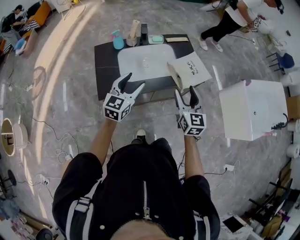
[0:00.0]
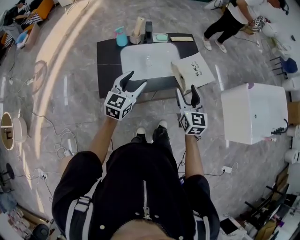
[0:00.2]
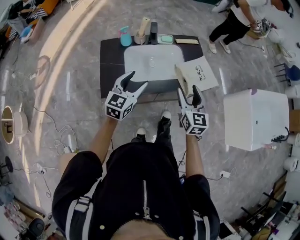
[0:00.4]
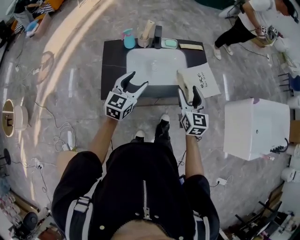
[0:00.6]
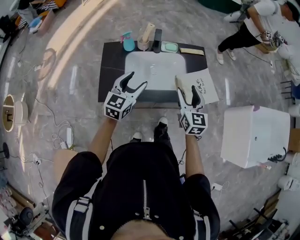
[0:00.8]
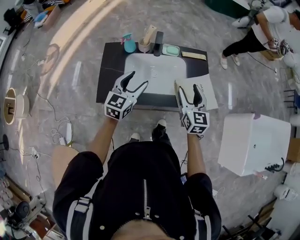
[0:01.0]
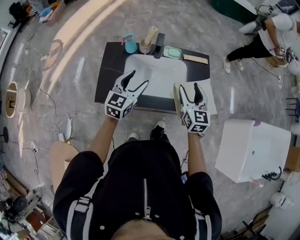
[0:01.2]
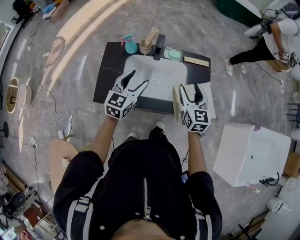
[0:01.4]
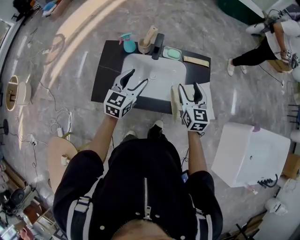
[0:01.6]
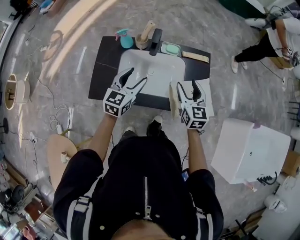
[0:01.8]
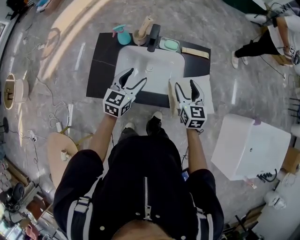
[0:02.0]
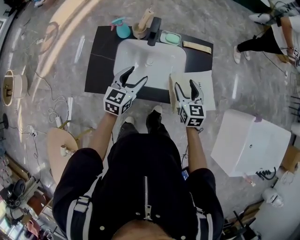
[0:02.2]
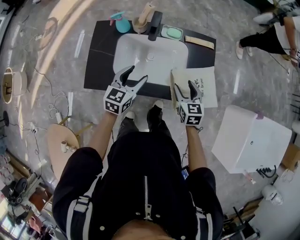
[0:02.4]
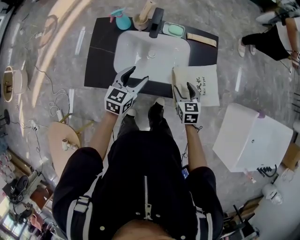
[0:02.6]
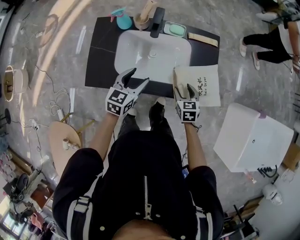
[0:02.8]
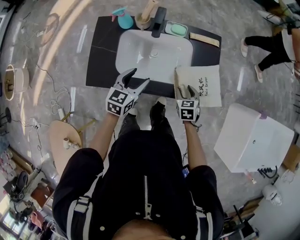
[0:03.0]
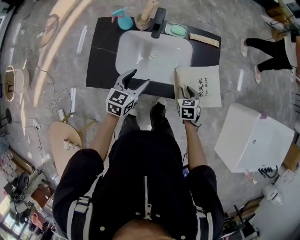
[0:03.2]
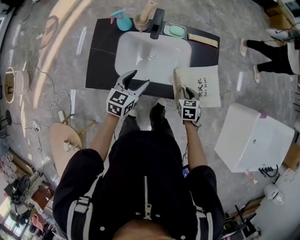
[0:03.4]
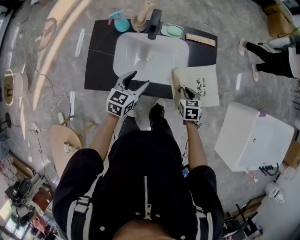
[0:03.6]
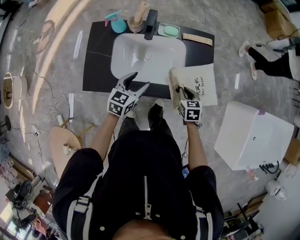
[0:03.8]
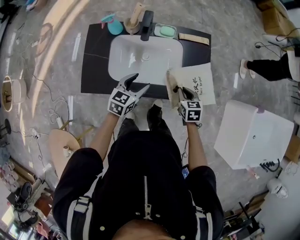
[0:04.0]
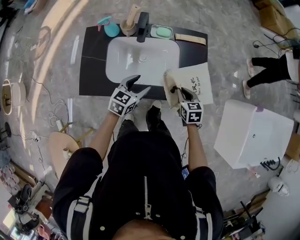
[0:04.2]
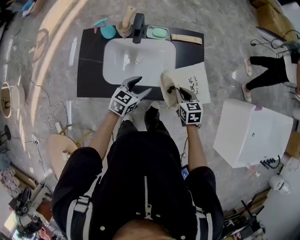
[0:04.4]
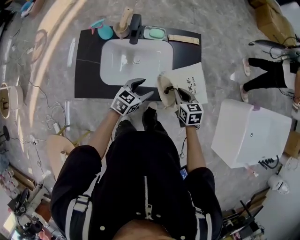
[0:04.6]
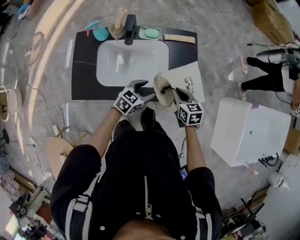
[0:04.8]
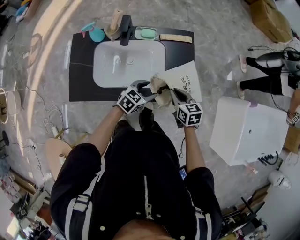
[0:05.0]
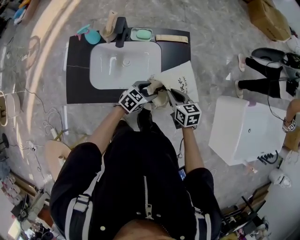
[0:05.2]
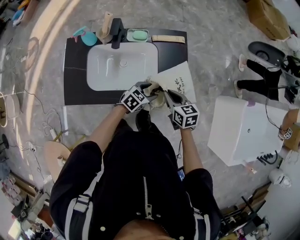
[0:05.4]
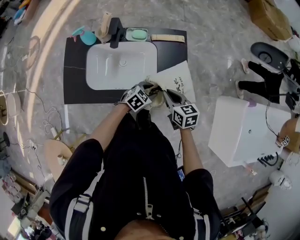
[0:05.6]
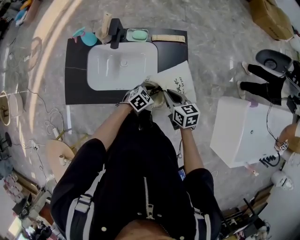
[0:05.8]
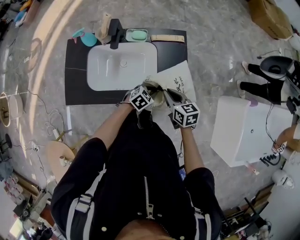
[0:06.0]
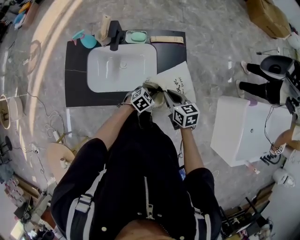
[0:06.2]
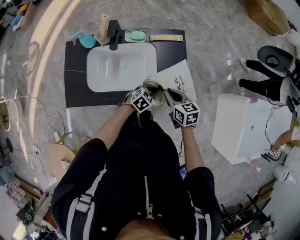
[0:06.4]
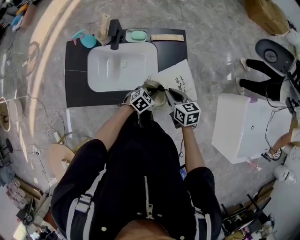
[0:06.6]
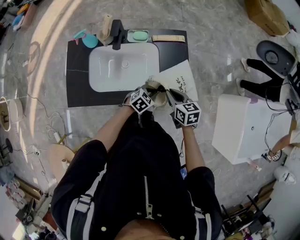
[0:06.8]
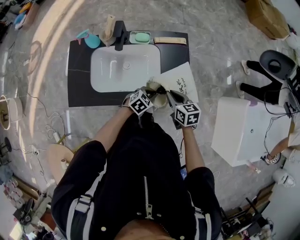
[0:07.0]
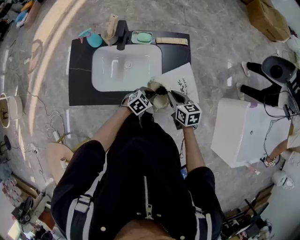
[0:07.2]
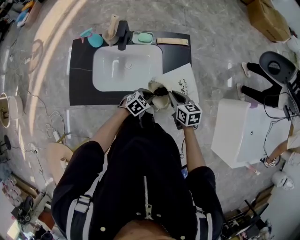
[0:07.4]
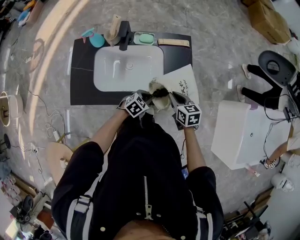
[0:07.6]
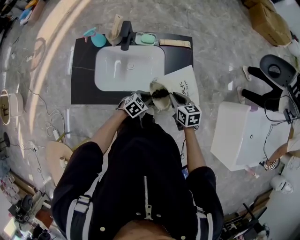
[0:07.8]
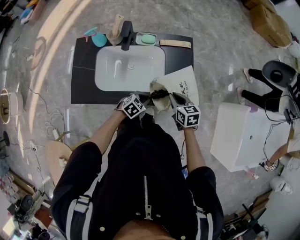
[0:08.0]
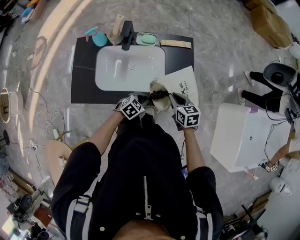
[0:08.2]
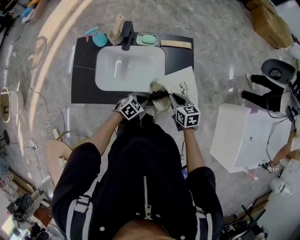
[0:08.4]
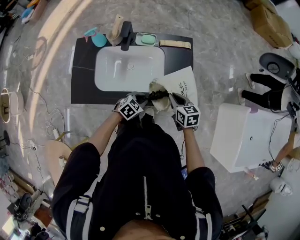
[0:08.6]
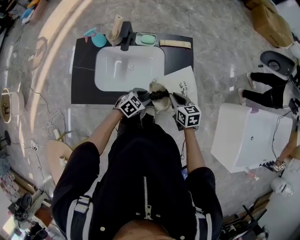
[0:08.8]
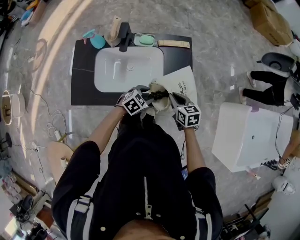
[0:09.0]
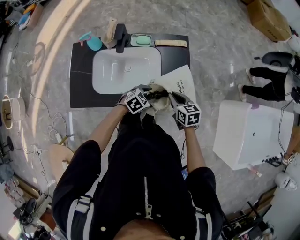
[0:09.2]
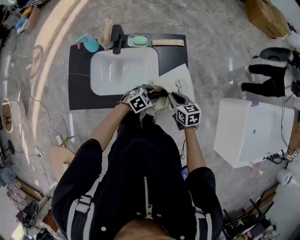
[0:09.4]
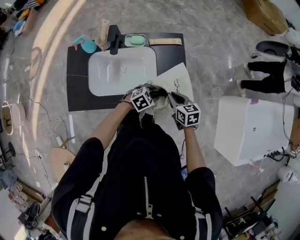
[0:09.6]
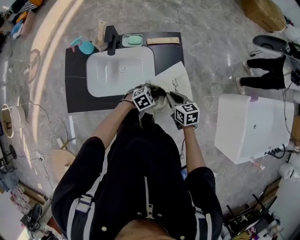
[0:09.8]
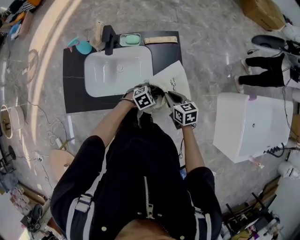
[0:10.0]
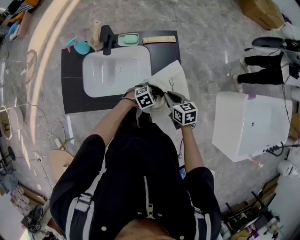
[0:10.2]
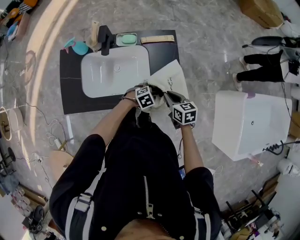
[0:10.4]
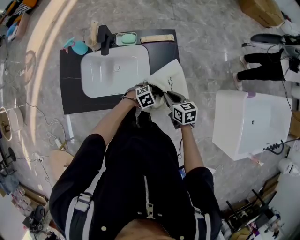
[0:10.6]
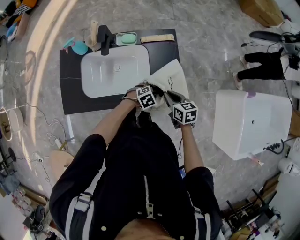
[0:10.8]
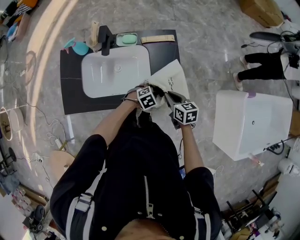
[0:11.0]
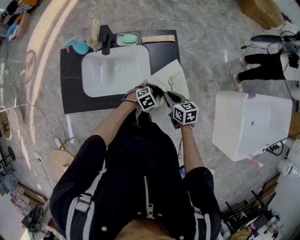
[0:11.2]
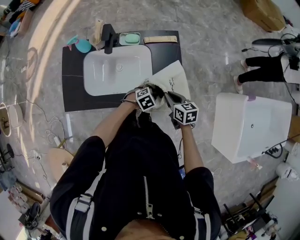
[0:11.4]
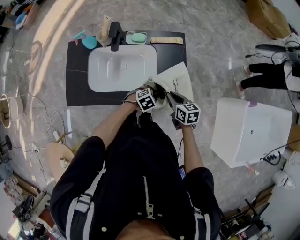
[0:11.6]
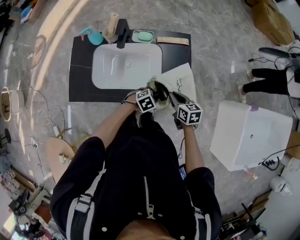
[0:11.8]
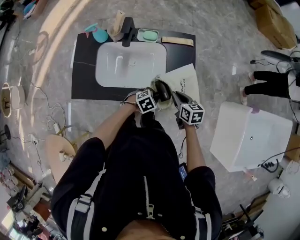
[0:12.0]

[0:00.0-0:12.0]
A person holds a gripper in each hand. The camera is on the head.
0:00.0 to 0:01.6: Both grippers move forward, roughly 20 cm. The right gripper changes its angle by about 20 degrees.
0:01.6 to 0:03.0: The left gripper shifts some 10 cm downward; the right gripper goes some 20 cm downward, and points its fingers approximately 40 degrees further downward.
0:03.0 to 0:04.4: The right gripper ends up roughly 5 cm from where it was, and closes; the left gripper shifts roughly 10 cm to the right.
0:04.4 to 0:06.0: The left gripper moves to the right and downward, roughly 20 cm, turns by approximately 30 degrees, and closes up.
0:06.0 to 0:07.6: The left gripper moves to the left, approximately 5 cm.
0:07.6 to 0:09.0: The left gripper opens its fingers.
0:09.0 to 0:10.4: The left gripper heads to the right and downward, covering some 10 cm, and rotates roughly 20 degrees.
0:10.4 to 0:12.0: The left gripper changes place by some 5 cm.

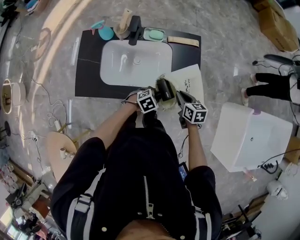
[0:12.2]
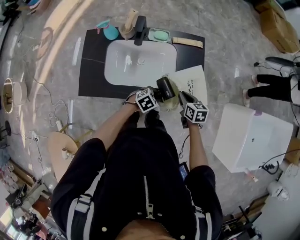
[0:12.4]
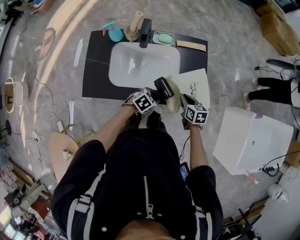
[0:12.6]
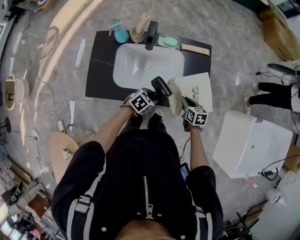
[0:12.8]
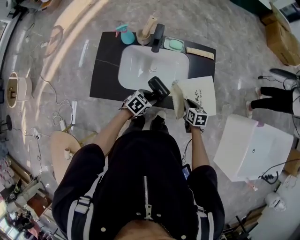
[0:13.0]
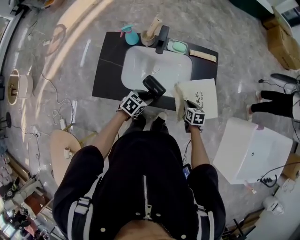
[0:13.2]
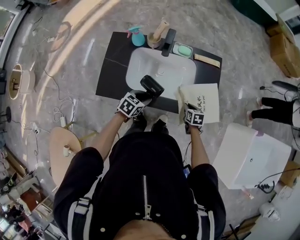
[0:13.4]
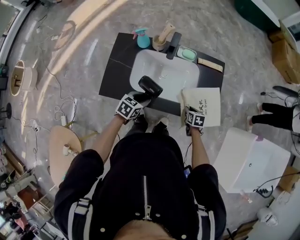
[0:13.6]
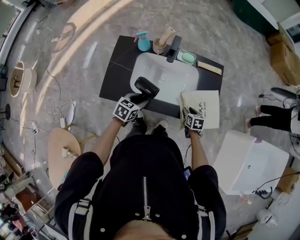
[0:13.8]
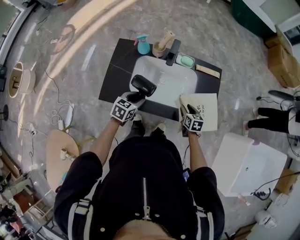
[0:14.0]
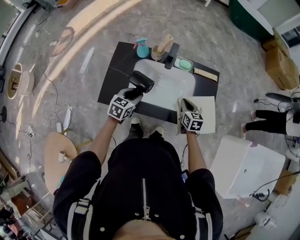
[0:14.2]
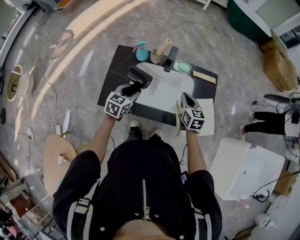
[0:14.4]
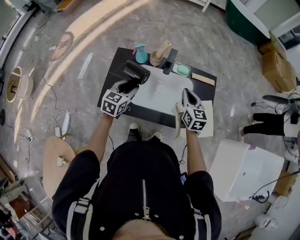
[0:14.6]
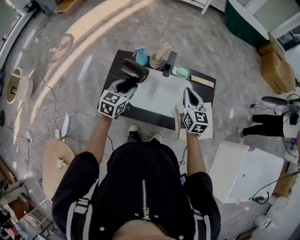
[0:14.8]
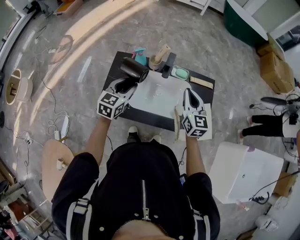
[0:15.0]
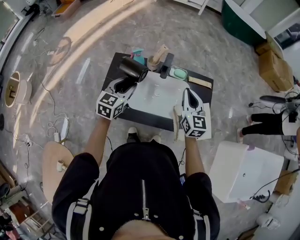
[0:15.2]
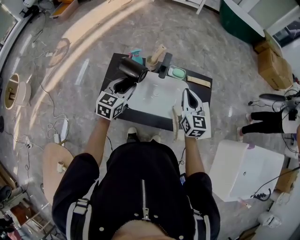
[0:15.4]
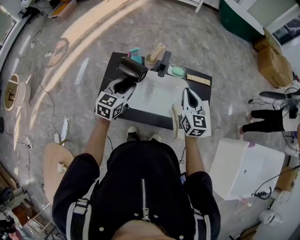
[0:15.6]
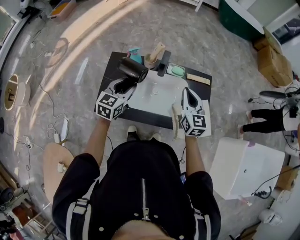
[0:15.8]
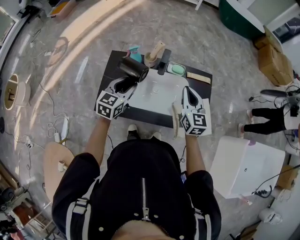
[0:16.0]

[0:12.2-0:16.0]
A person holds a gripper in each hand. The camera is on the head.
0:12.2 to 0:13.4: The left gripper moves to the left, approximately 20 cm, and swivels approximately 40 degrees; the right gripper goes approximately 10 cm downward.
0:13.4 to 0:14.8: The right gripper is displaced upward and to the left by about 30 cm, tilts its fingers about 40 degrees upward, and opens, then closes once more. Meanwhile the left gripper travels upward, to the left and forward by about 25 cm, and rotates approximately 30 degrees.
0:14.8 to 0:16.0: The grippers make only small movements.

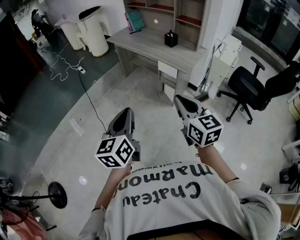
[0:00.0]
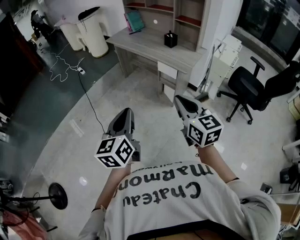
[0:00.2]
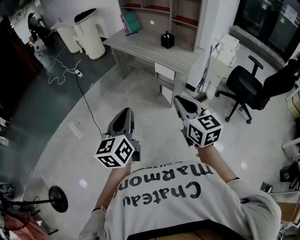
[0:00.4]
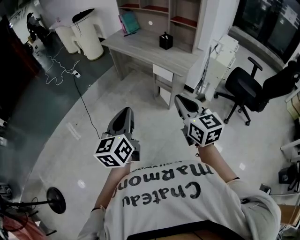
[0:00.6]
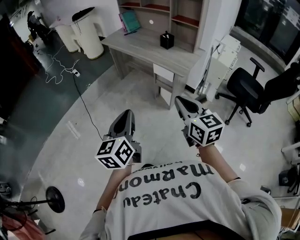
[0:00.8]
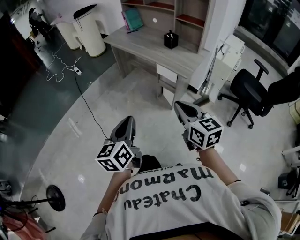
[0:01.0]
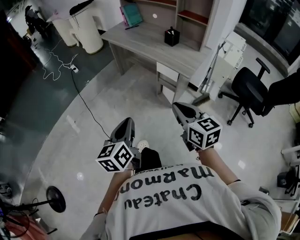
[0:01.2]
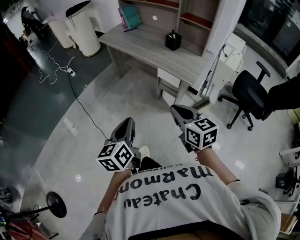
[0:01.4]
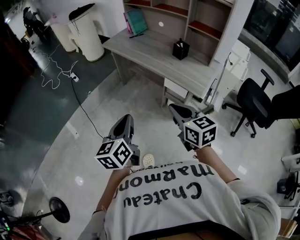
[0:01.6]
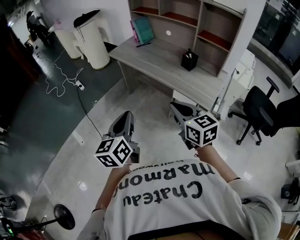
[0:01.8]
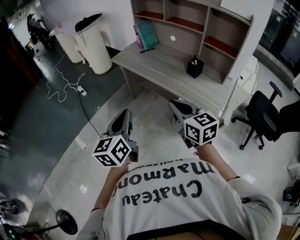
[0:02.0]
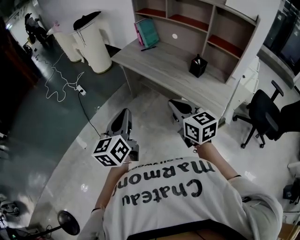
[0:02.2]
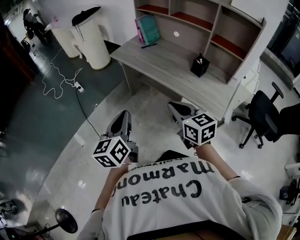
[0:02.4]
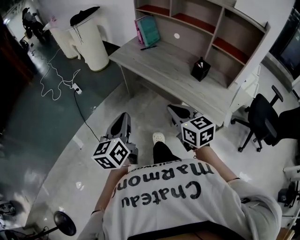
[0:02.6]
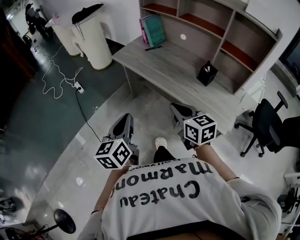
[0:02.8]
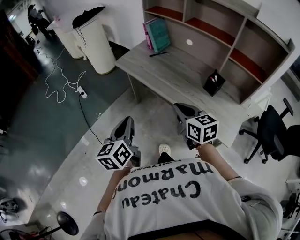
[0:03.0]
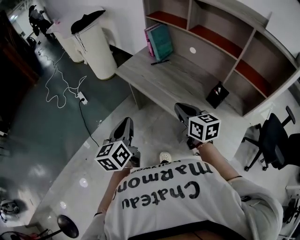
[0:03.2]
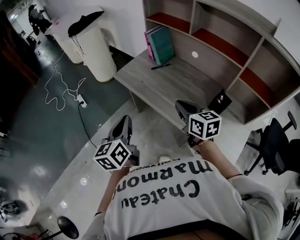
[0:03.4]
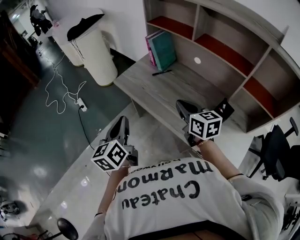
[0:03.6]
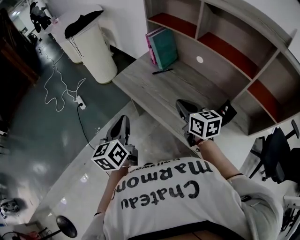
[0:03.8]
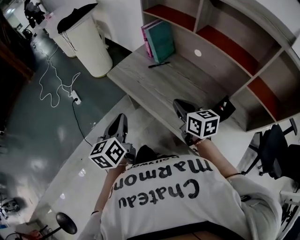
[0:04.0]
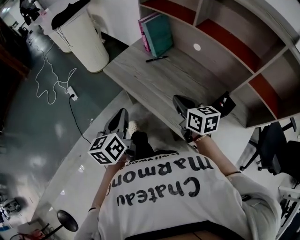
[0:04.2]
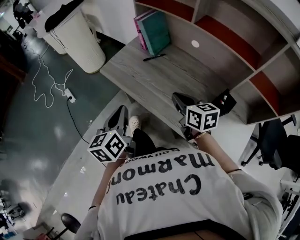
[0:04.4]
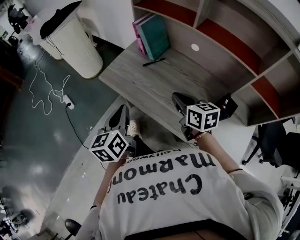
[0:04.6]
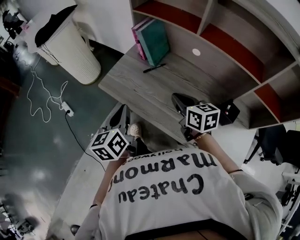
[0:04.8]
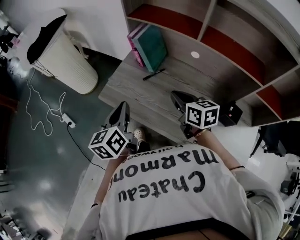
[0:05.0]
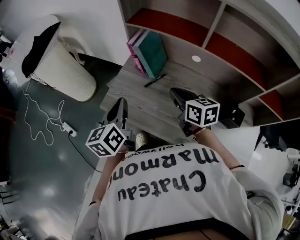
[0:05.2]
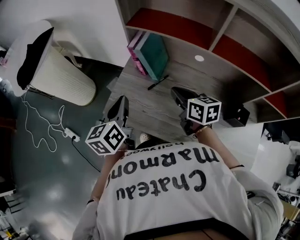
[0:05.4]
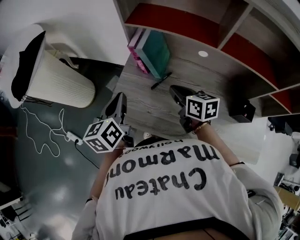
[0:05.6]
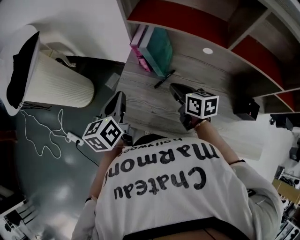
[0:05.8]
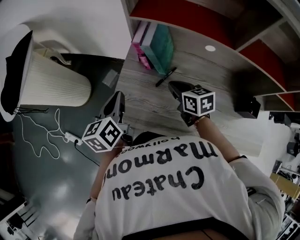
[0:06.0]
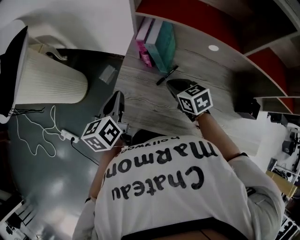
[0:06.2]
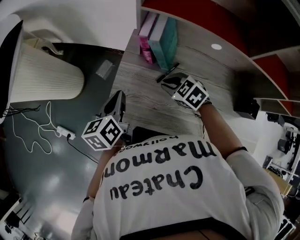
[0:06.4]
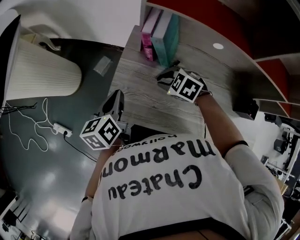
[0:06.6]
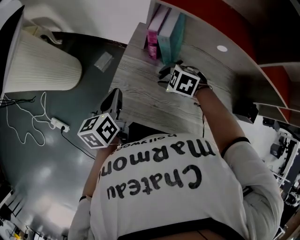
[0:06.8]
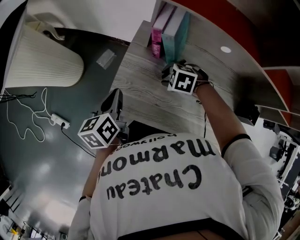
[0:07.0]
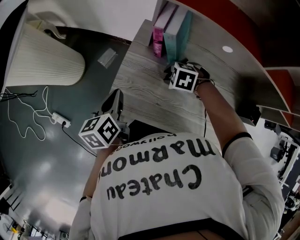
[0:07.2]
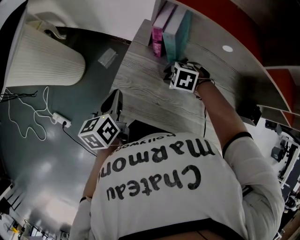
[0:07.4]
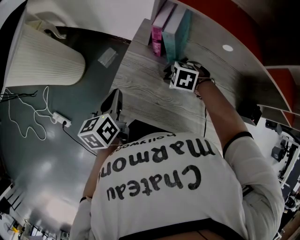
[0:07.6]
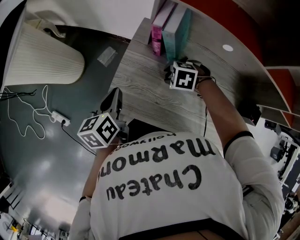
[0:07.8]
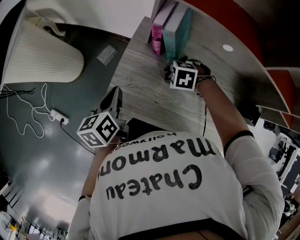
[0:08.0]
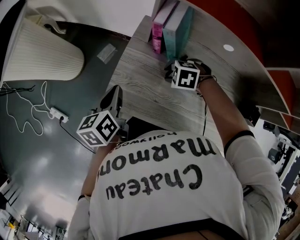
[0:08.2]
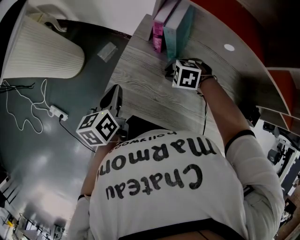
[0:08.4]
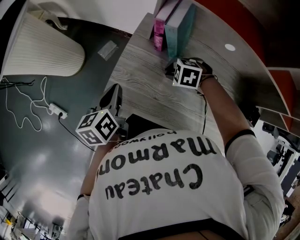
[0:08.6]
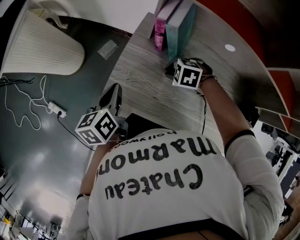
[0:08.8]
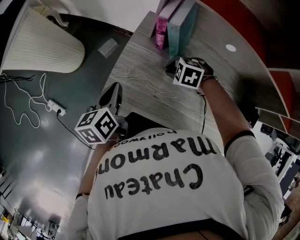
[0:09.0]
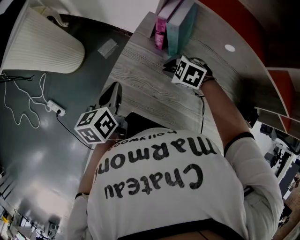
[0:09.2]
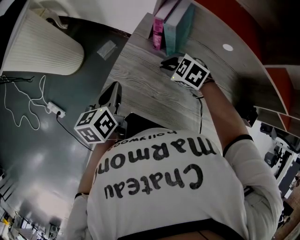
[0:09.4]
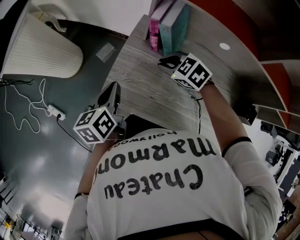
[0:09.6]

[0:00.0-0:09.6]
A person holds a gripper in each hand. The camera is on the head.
0:00.0 to 0:01.6: The two grippers go approximately 25 cm forward.
0:01.6 to 0:03.2: The grippers both shift forward by some 40 cm.
0:03.2 to 0:04.8: Both grippers move forward, roughly 25 cm.
0:04.8 to 0:06.4: The left gripper heads forward, covering approximately 25 cm, and turns by some 20 degrees; the right gripper heads forward, downward and to the left, covering about 25 cm, and changes its angle by roughly 40 degrees.
0:06.4 to 0:08.0: The right gripper is displaced downward by approximately 5 cm, swivels approximately 40 degrees, and opens.
0:08.0 to 0:09.6: The right gripper is displaced upward by approximately 5 cm, changes its angle by approximately 30 degrees, and closes.
